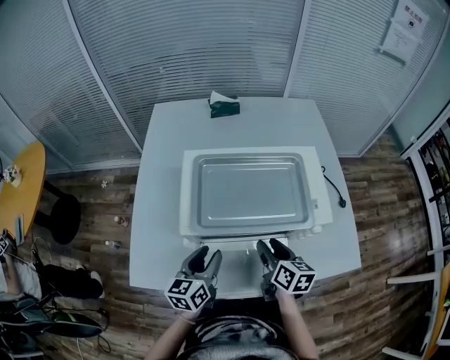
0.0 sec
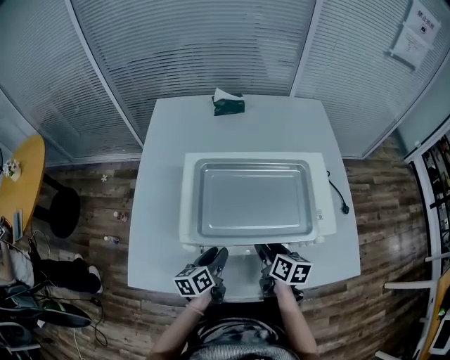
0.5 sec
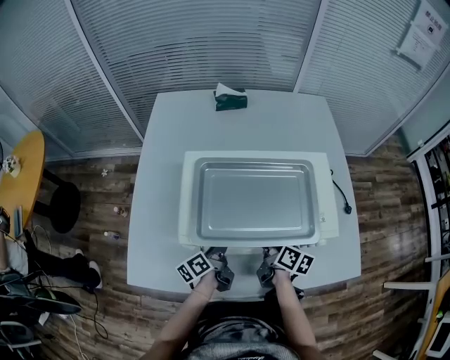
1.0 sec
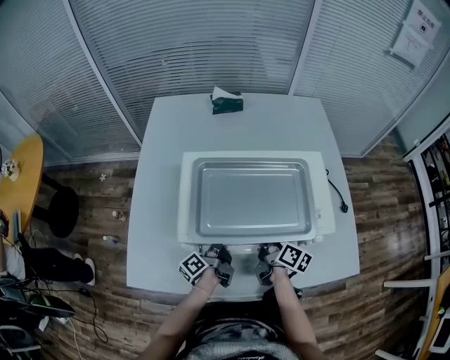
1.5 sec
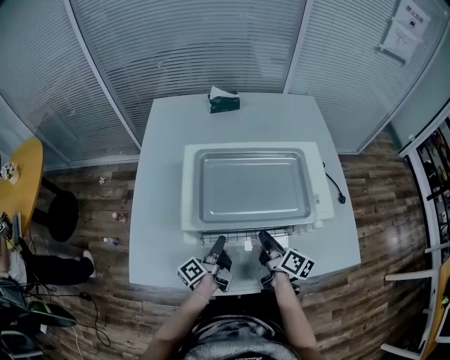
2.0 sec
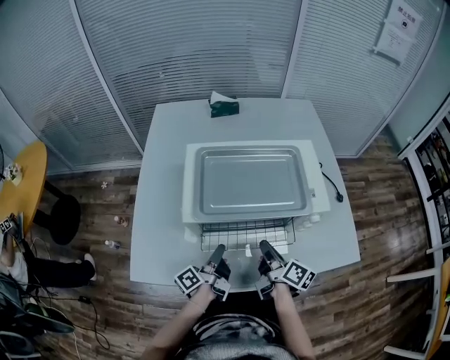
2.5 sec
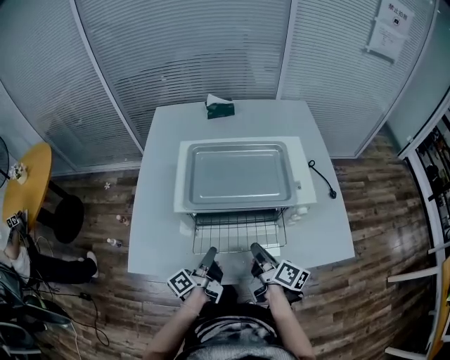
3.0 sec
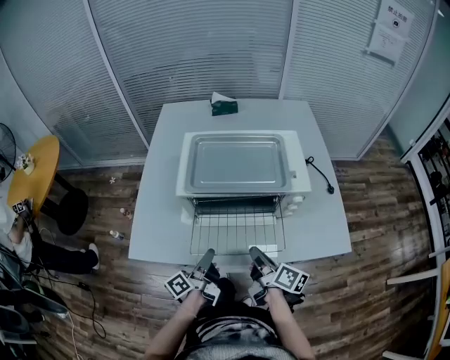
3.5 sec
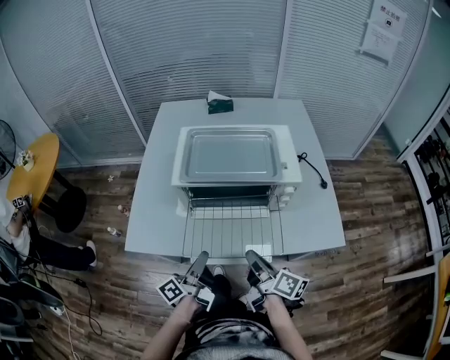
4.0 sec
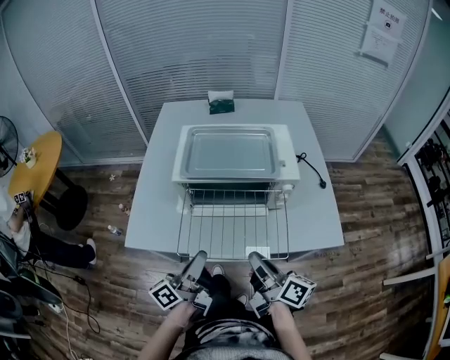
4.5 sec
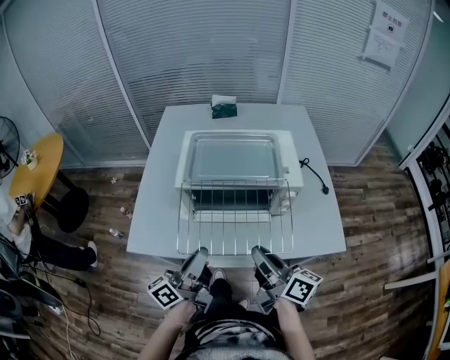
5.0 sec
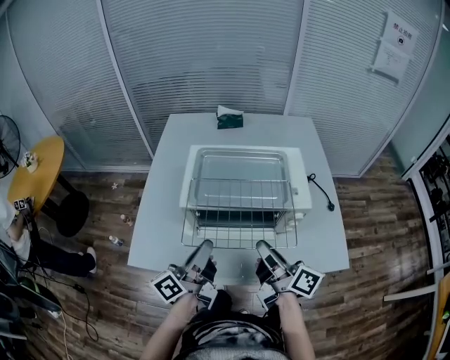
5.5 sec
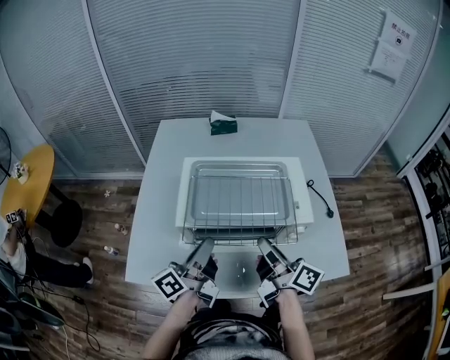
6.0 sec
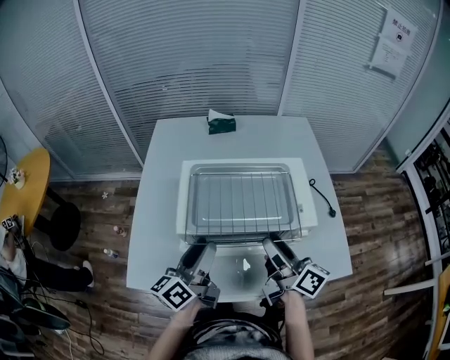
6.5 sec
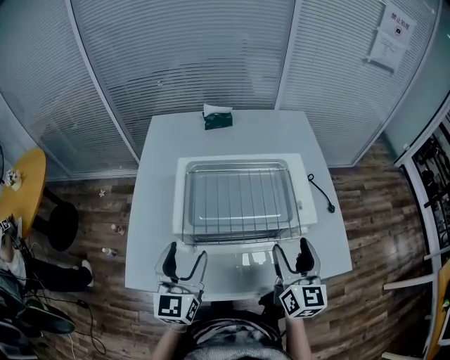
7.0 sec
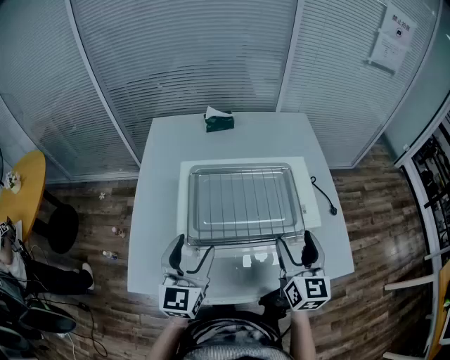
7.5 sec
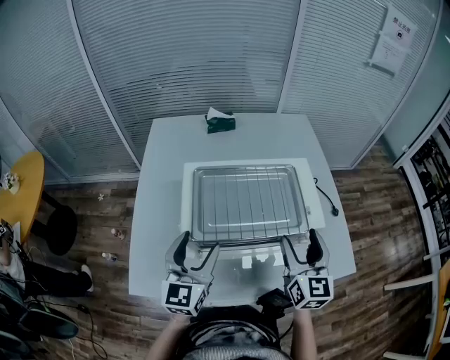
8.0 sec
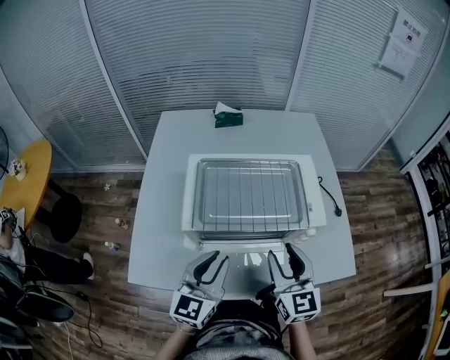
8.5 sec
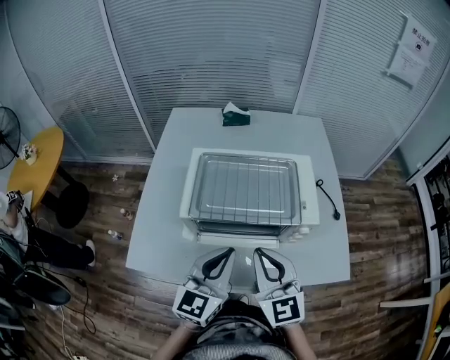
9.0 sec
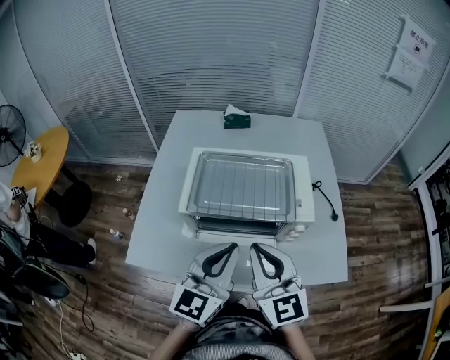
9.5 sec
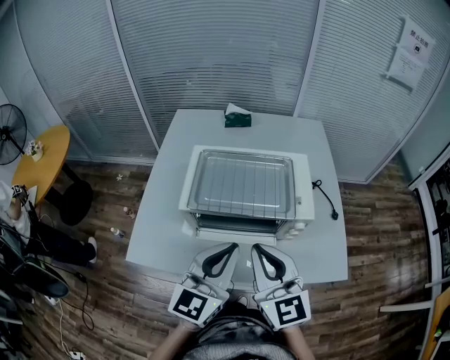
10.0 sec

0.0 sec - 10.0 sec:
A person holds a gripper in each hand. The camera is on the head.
0.0 sec - 2.0 sec: The right gripper turns by approximately 30 degrees, and closes up; the left gripper goes roughly 10 cm downward, rolls counterclockwise, seen from behind, by roughly 60 degrees, and closes up.
2.0 sec - 4.0 sec: The grippers both shift backward and upward by roughly 20 cm.
4.0 sec - 6.0 sec: Both grippers travel together forward and upward, about 20 cm.
6.0 sec - 8.0 sec: The left gripper rotates around the line of its fingers by roughly 60 degrees, clockwise from behind, and opens up; the right gripper travels to the right by approximately 5 cm, twists approximately 60 degrees counterclockwise, seen from behind, and opens up.
8.0 sec - 10.0 sec: The left gripper heads to the right, backward and upward, covering some 15 cm, and closes up; the right gripper moves backward, to the left and upward, some 15 cm, turns by roughly 30 degrees, and closes its fingers.

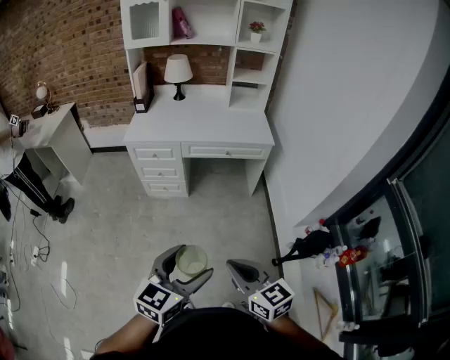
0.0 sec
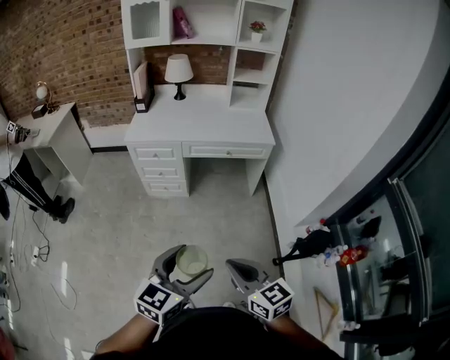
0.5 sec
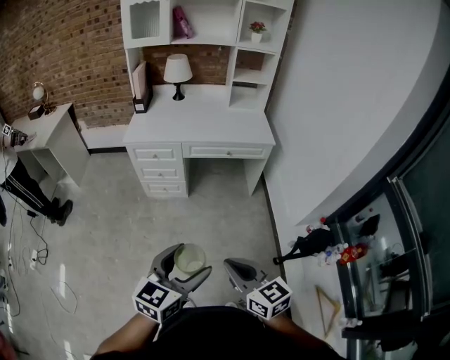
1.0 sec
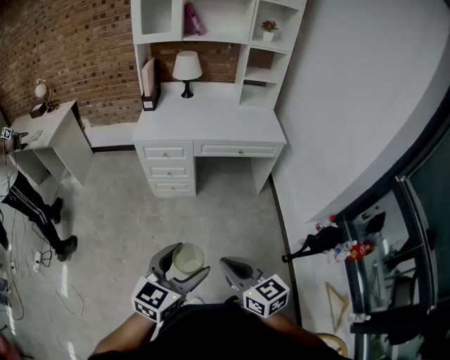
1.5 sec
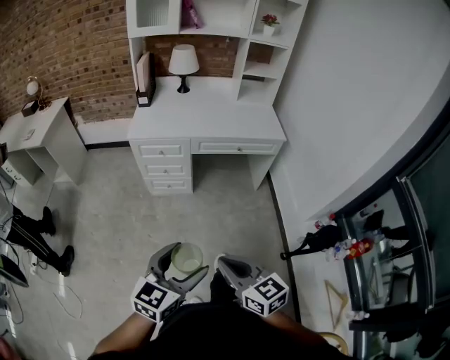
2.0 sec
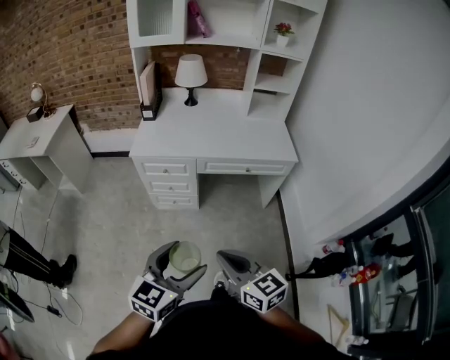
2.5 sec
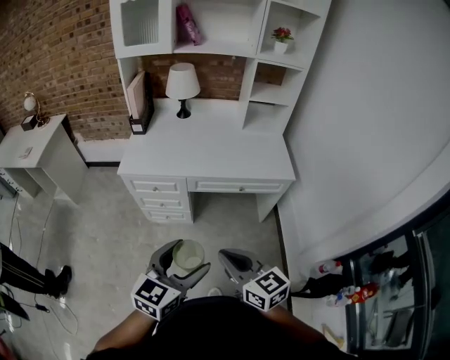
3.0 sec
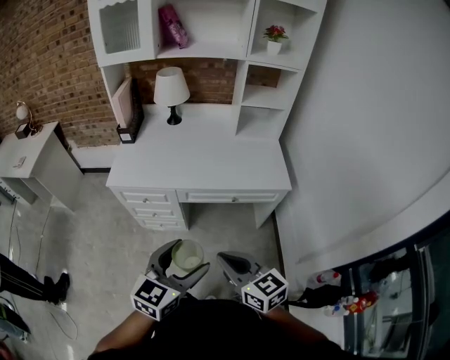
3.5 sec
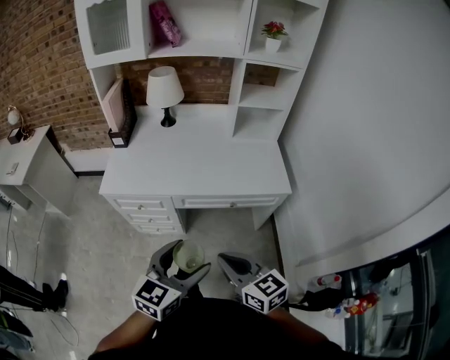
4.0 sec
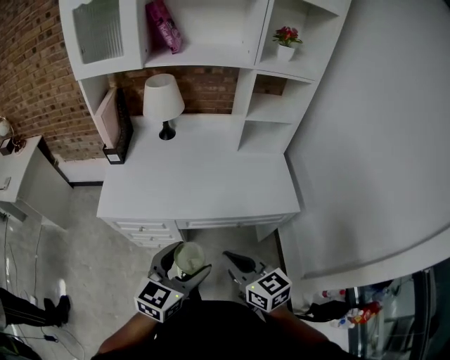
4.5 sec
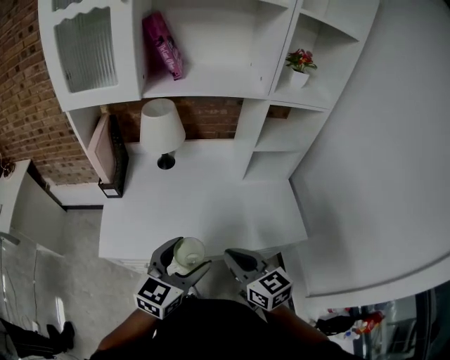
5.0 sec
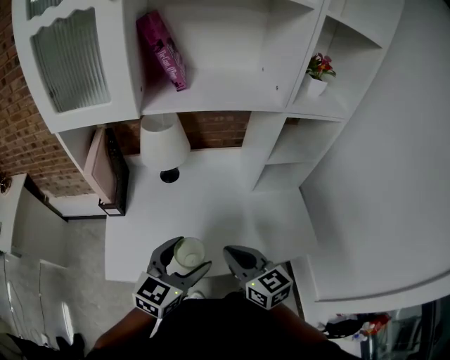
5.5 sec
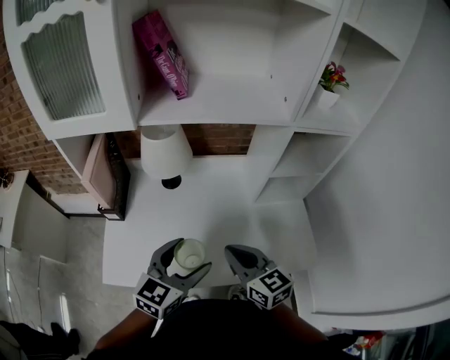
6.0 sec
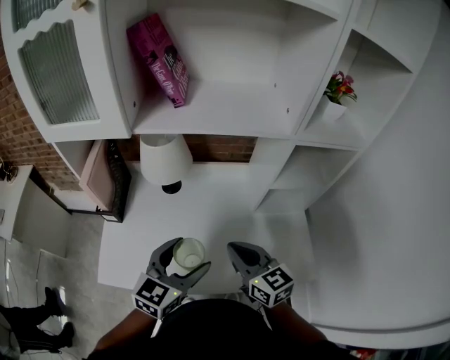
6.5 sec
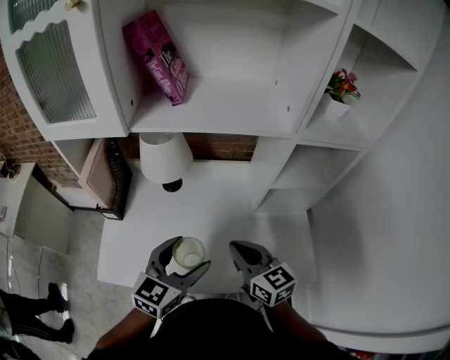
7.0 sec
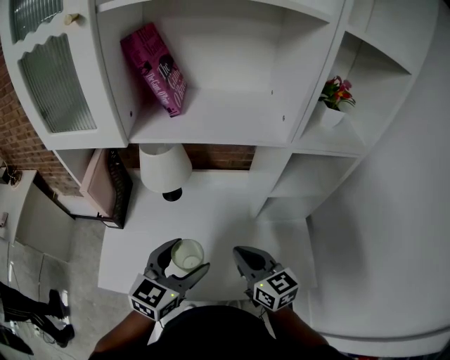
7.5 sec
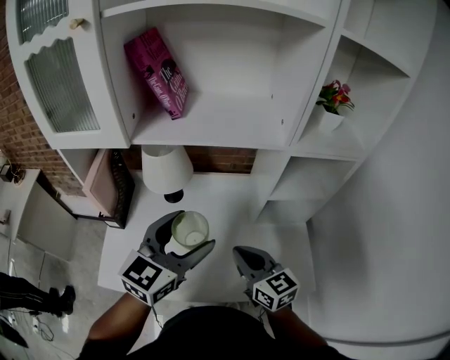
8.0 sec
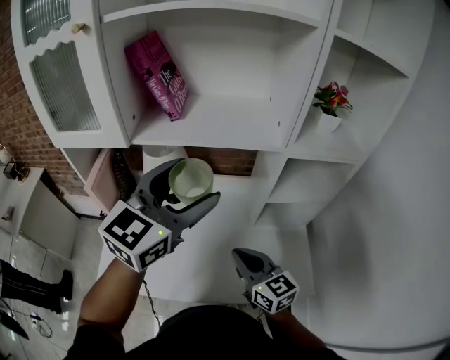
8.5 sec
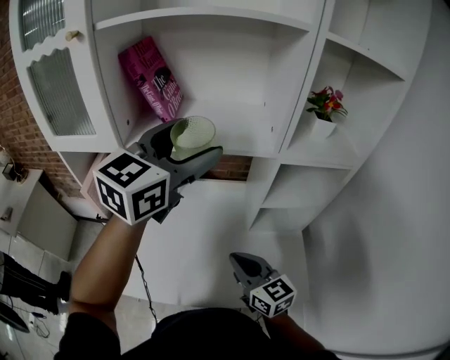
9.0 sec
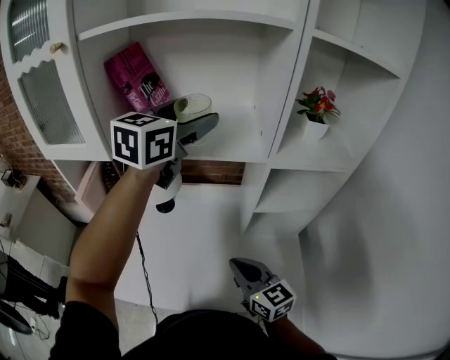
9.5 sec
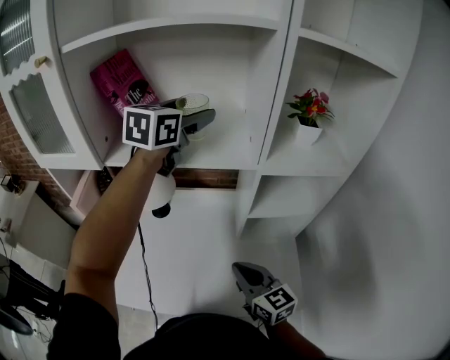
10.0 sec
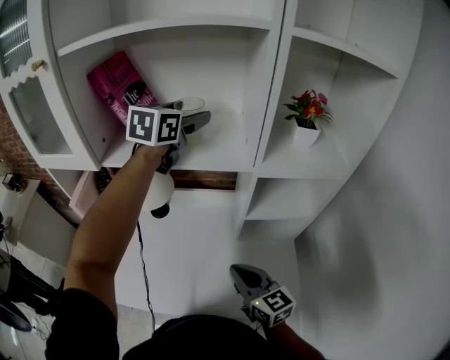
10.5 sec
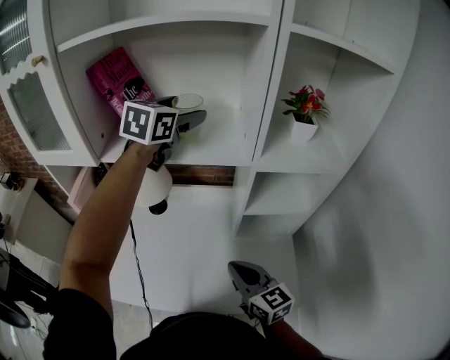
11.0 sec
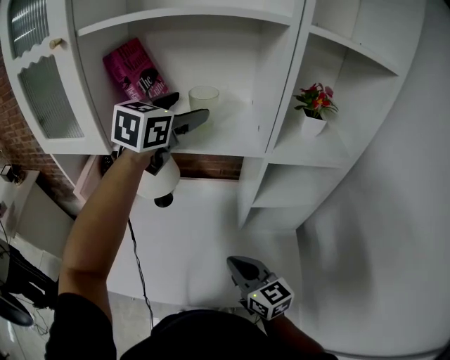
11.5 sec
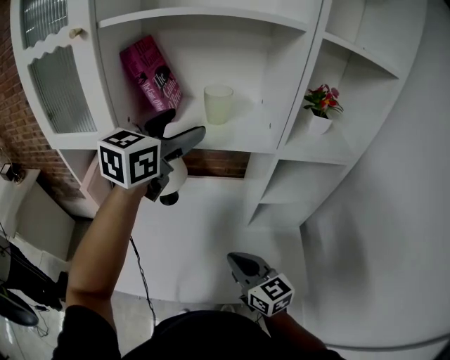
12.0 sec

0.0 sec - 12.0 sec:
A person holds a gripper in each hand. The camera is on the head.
0.0 sec - 2.0 sec: The left gripper shifts some 15 cm to the left and forward; the right gripper travels to the left by roughly 15 cm.
2.0 sec - 4.0 sec: The grippers both shift forward by some 35 cm.
4.0 sec - 6.0 sec: Both grippers are carried forward, approximately 40 cm.
6.0 sec - 8.0 sec: The right gripper travels to the right and forward by some 10 cm. Meanwhile the left gripper goes approximately 15 cm upward and forward.
8.0 sec - 10.0 sec: The right gripper goes approximately 10 cm to the right. Meanwhile the left gripper heads forward and upward, covering some 35 cm.
10.0 sec - 12.0 sec: The left gripper travels backward and to the left by approximately 15 cm, while the right gripper travels to the left by some 5 cm.

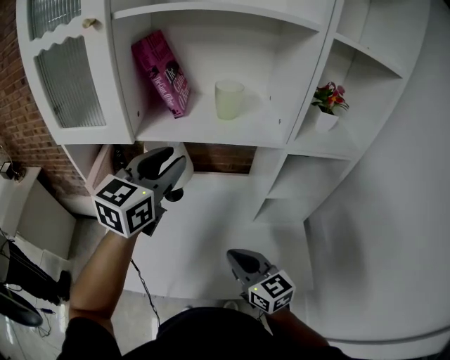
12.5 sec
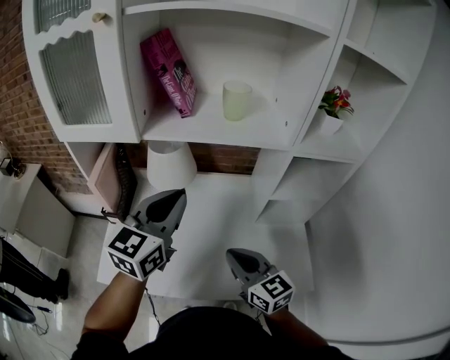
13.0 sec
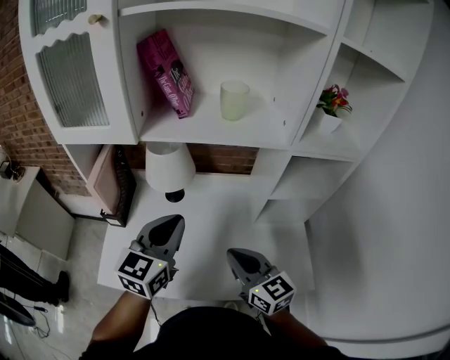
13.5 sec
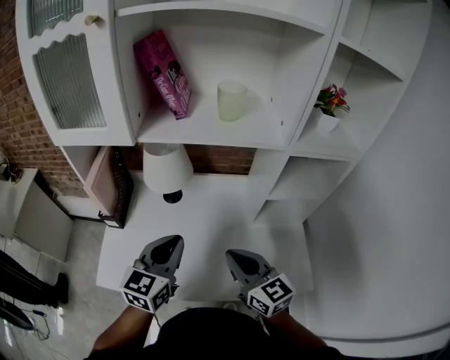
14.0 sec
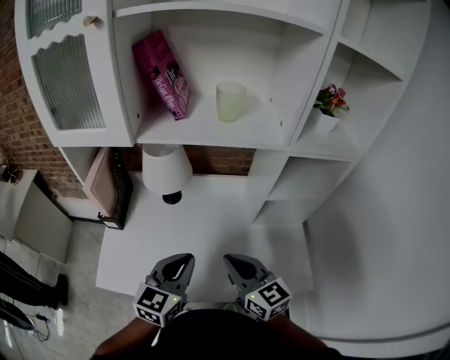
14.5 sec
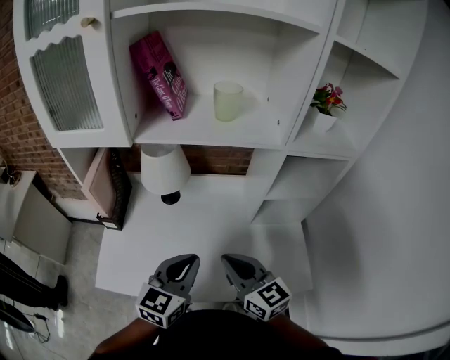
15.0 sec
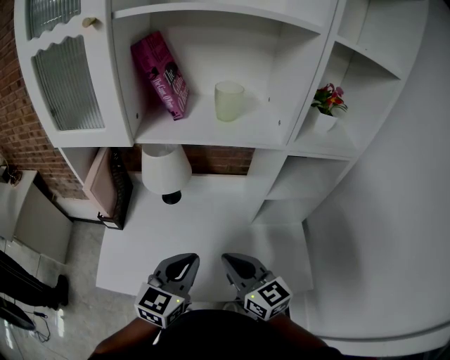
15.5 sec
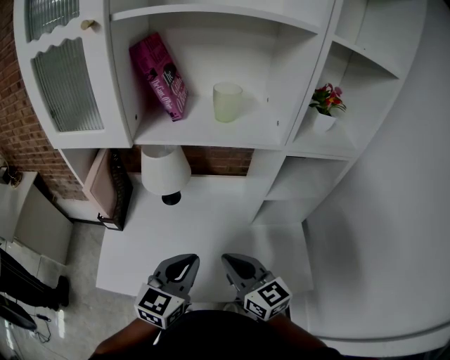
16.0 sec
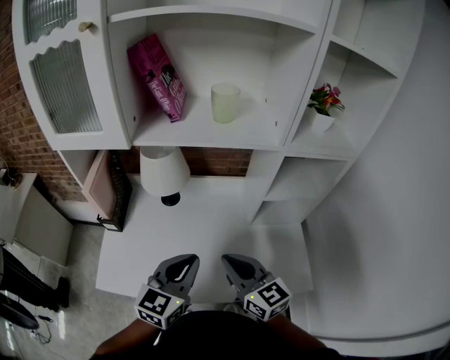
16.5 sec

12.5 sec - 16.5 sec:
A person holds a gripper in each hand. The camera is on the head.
12.5 sec - 14.5 sec: The left gripper travels downward and backward by some 25 cm.
14.5 sec - 16.5 sec: The grippers stay close to where they were, moving slightly.

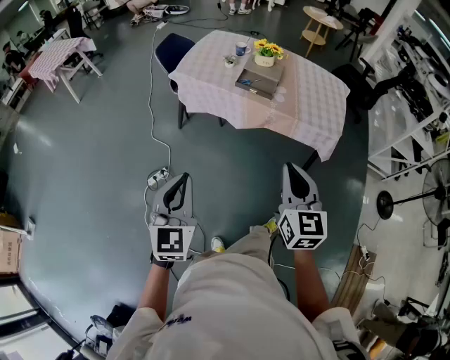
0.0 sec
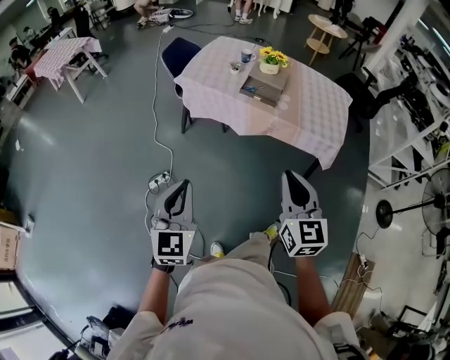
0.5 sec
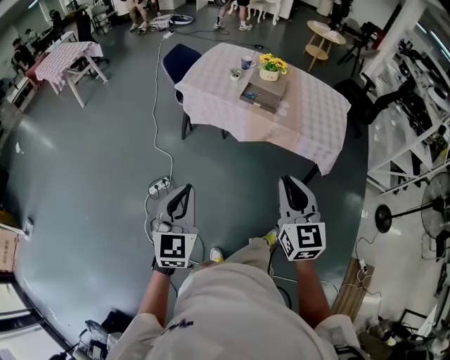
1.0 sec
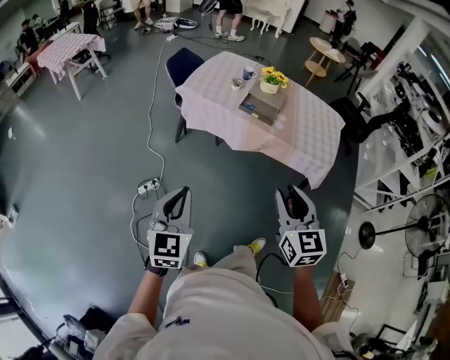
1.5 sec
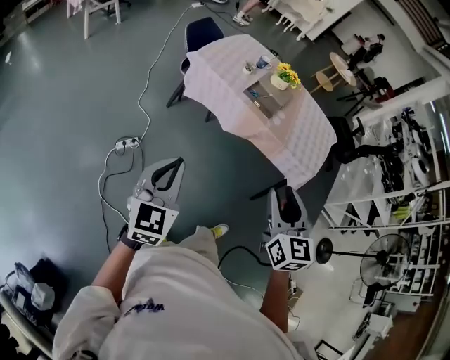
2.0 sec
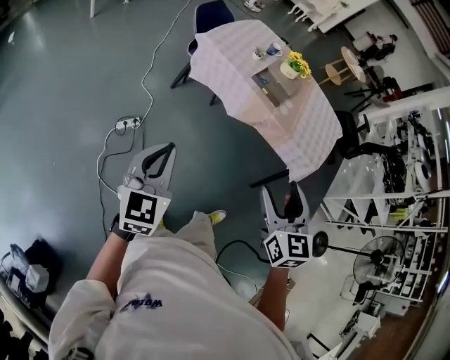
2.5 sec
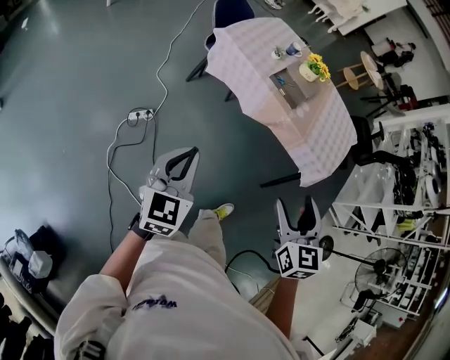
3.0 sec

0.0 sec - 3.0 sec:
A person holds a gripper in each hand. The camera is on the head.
0.0 sec - 1.5 sec: There are only small adjustments of the grippers.
1.5 sec - 3.0 sec: The right gripper opens its fingers.
